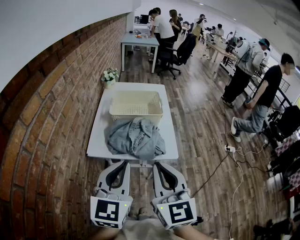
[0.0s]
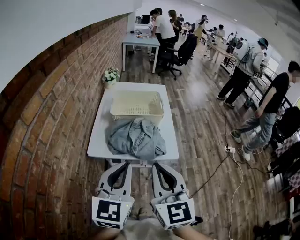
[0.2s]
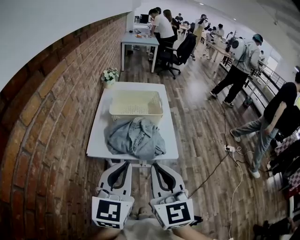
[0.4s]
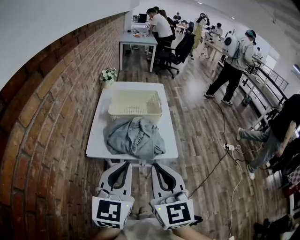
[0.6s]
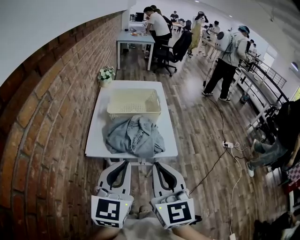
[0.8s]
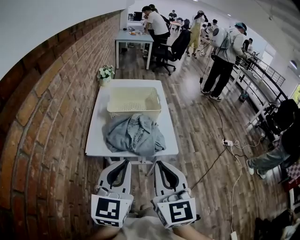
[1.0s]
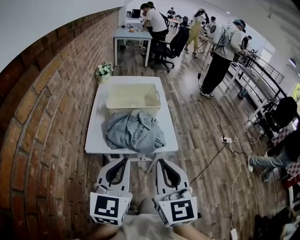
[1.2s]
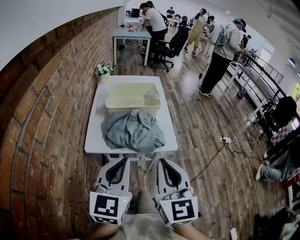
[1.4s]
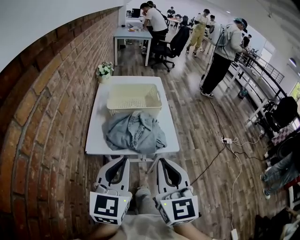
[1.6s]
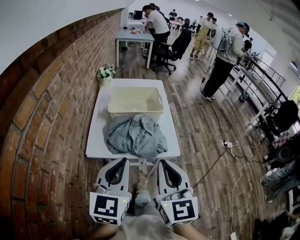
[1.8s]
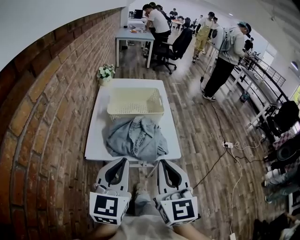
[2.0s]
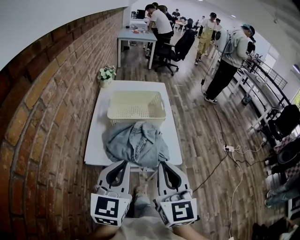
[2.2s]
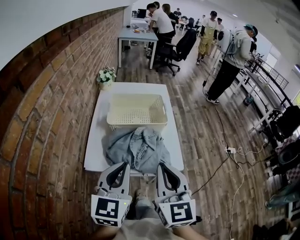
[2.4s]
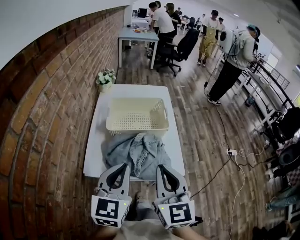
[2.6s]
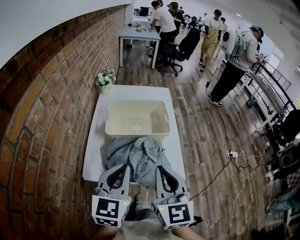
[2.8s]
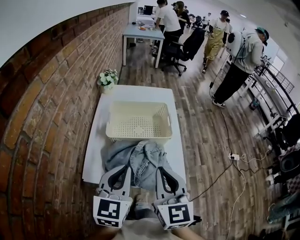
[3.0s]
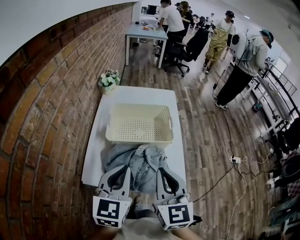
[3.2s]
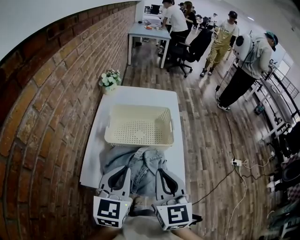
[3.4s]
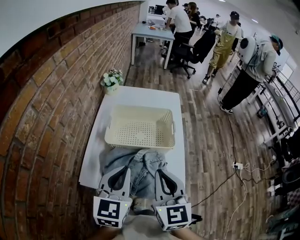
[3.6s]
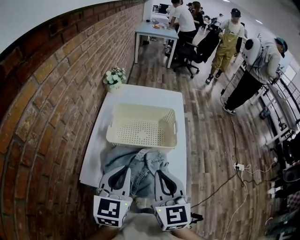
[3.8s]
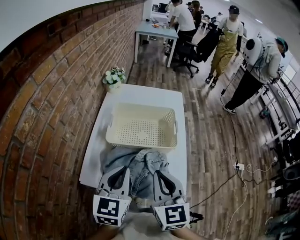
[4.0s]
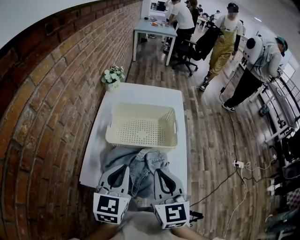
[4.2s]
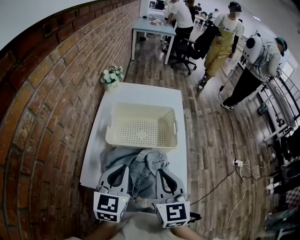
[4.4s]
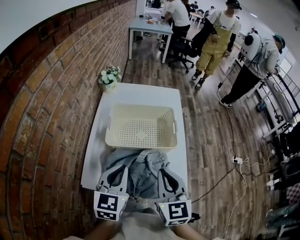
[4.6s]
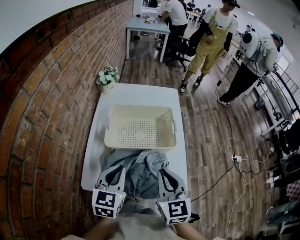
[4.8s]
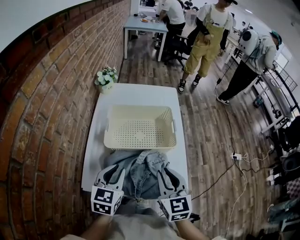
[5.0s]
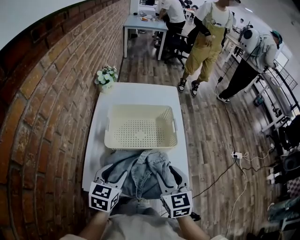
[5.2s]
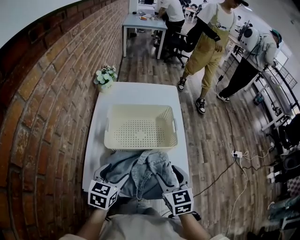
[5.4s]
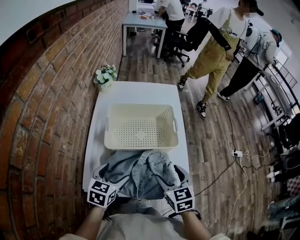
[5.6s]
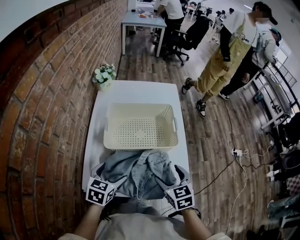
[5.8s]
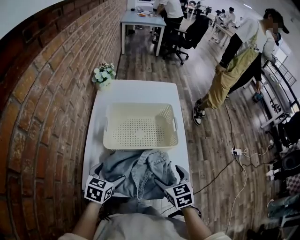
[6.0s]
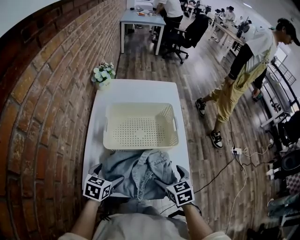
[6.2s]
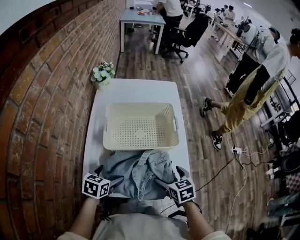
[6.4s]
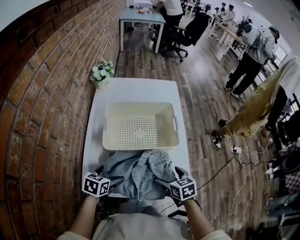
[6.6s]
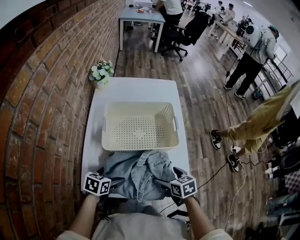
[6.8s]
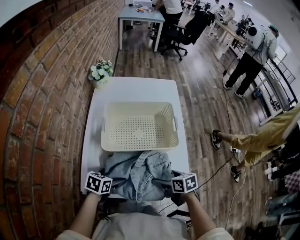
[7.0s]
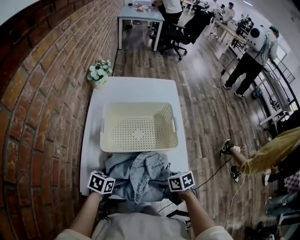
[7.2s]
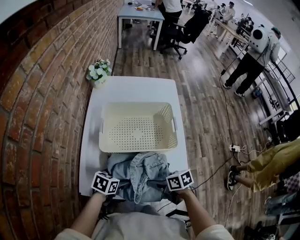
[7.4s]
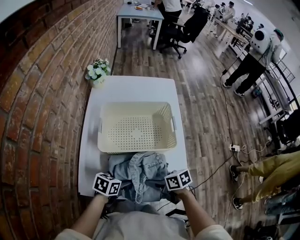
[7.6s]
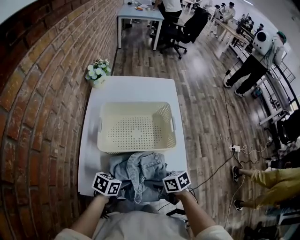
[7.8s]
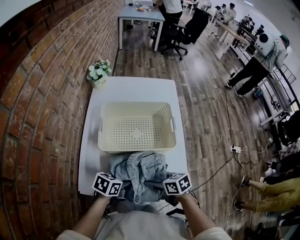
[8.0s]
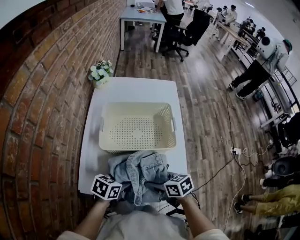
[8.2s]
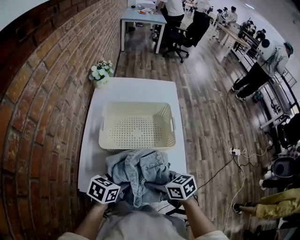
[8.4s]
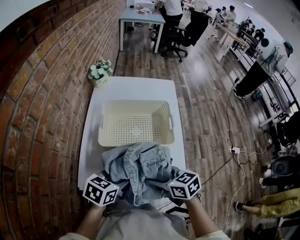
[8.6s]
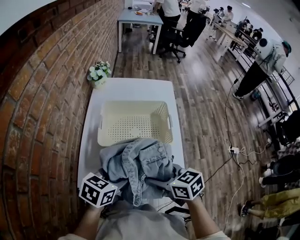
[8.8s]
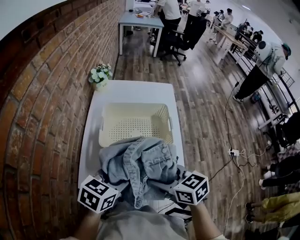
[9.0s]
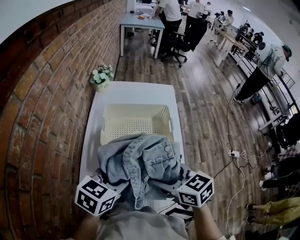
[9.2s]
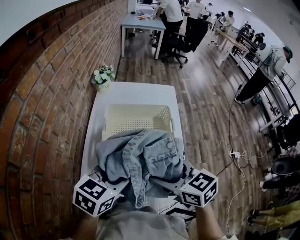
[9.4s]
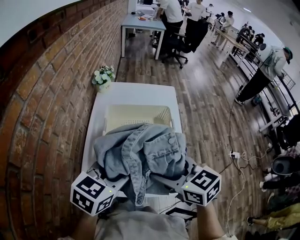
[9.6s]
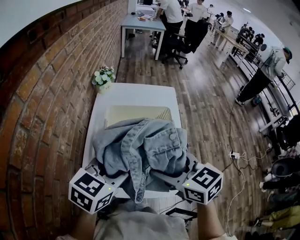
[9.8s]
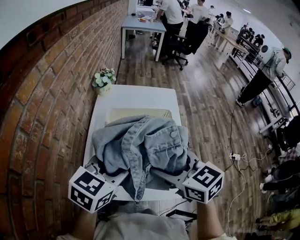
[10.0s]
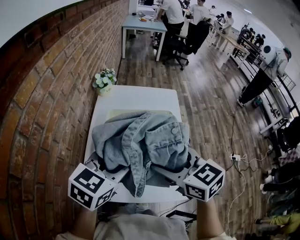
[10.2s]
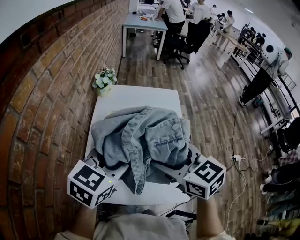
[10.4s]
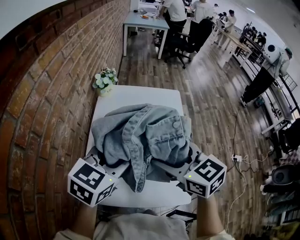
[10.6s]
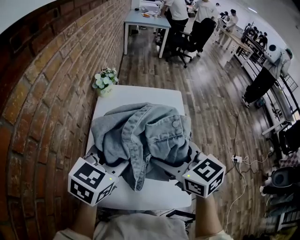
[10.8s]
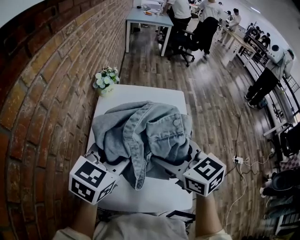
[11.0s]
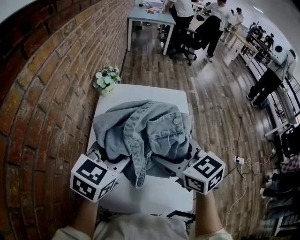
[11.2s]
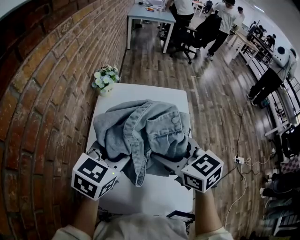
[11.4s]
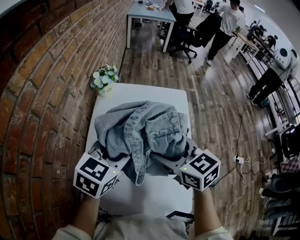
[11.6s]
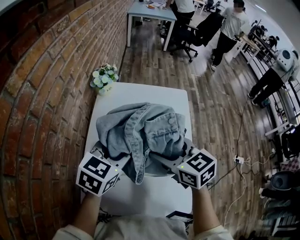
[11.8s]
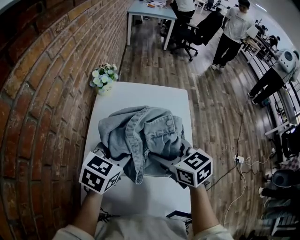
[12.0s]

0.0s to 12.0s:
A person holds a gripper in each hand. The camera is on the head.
0.0s to 1.6s: The grippers stay close to where they were, moving slightly.
1.6s to 3.0s: The grippers both shift forward by approximately 20 cm.
3.0s to 4.4s: The grippers both shift forward and downward by some 10 cm.
4.4s to 6.0s: The left gripper heads downward and to the left, covering approximately 15 cm, rotates roughly 30 degrees, and opens, while the right gripper shifts about 15 cm downward, turns by about 30 degrees, and opens its fingers.
6.0s to 7.6s: The grippers both shift downward by approximately 10 cm. The right gripper swivels some 40 degrees. The left gripper rotates some 30 degrees.
7.6s to 9.0s: Both grippers travel together upward, roughly 20 cm. The left gripper changes its angle by roughly 20 degrees, and closes up. The right gripper swivels roughly 30 degrees.
9.0s to 10.4s: The grippers both shift upward and forward by about 15 cm.
10.4s to 12.0s: Both grippers move forward and downward, about 15 cm.

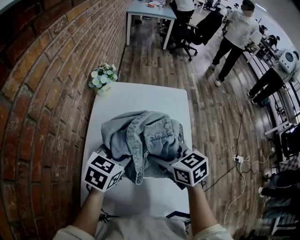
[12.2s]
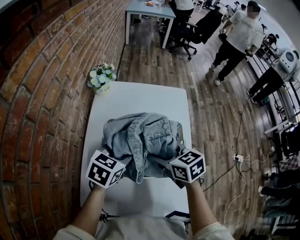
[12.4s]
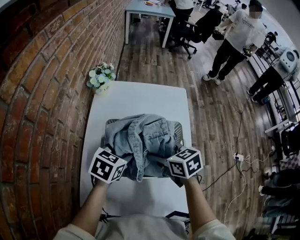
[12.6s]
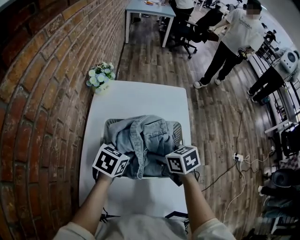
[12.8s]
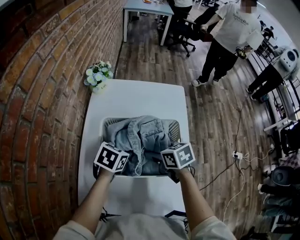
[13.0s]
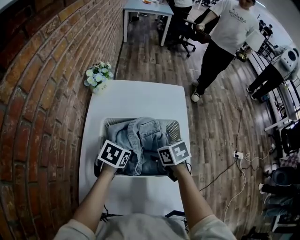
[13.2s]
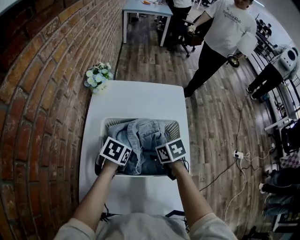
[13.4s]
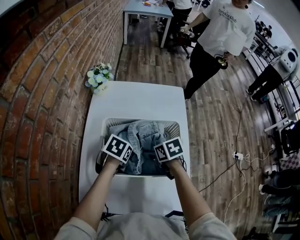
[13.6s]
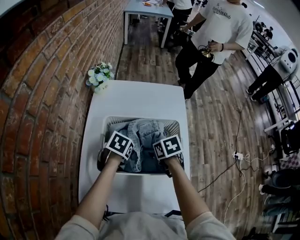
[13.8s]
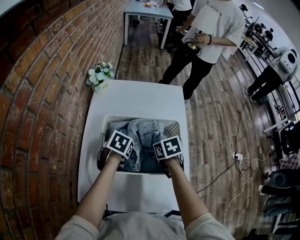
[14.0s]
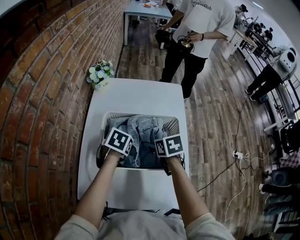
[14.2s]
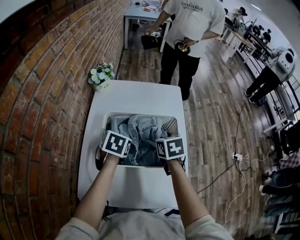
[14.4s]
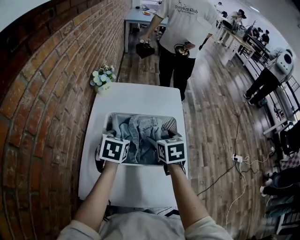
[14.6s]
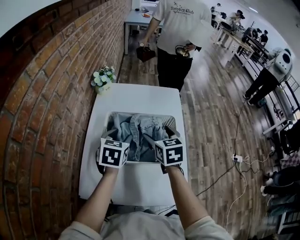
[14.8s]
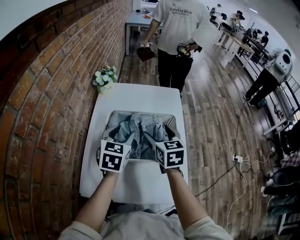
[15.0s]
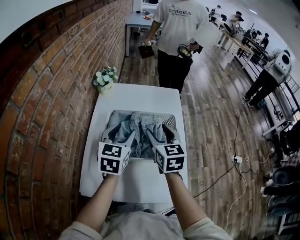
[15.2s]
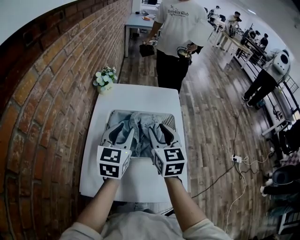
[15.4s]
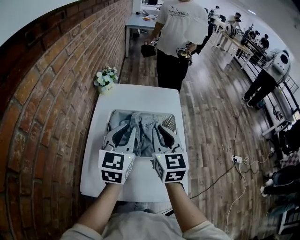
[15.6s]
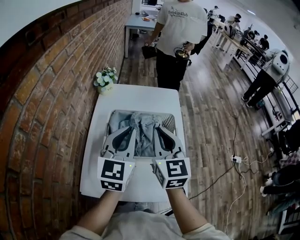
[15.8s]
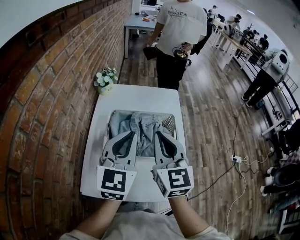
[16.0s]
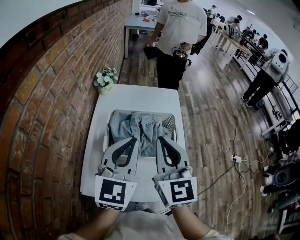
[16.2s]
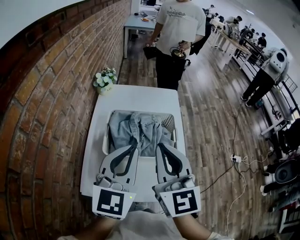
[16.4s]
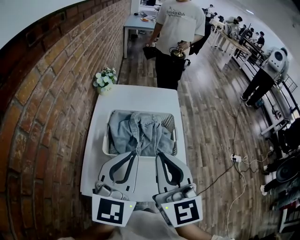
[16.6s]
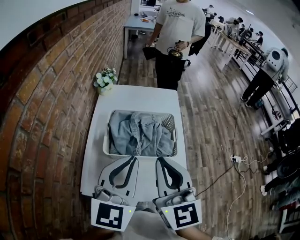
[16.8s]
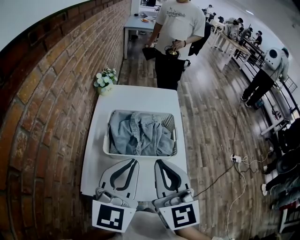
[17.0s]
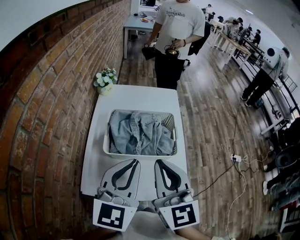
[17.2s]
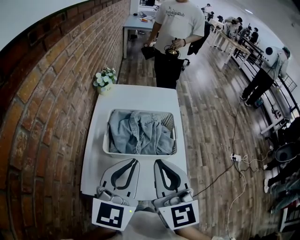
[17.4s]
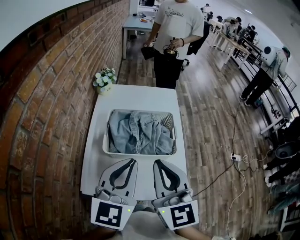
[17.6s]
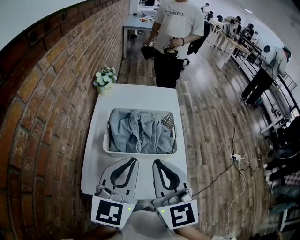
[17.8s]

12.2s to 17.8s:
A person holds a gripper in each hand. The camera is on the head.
12.2s to 13.6s: The two grippers go roughly 15 cm downward. The left gripper turns by approximately 30 degrees; the right gripper swivels roughly 30 degrees.
13.6s to 15.0s: Both grippers travel together upward, approximately 15 cm. The right gripper swivels about 40 degrees; the left gripper angles its fingers upward, by approximately 40 degrees.
15.0s to 16.4s: The grippers both shift upward and backward by about 20 cm. The right gripper changes its angle by about 30 degrees, and closes up; the left gripper swivels roughly 30 degrees, and closes up.
16.4s to 17.8s: The right gripper heads backward, covering some 5 cm.

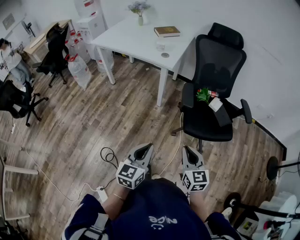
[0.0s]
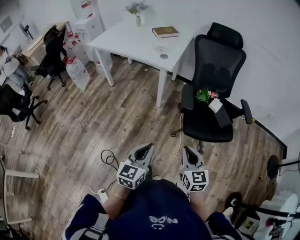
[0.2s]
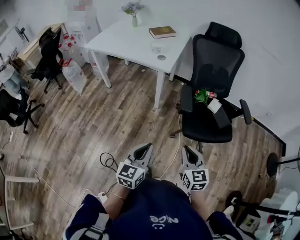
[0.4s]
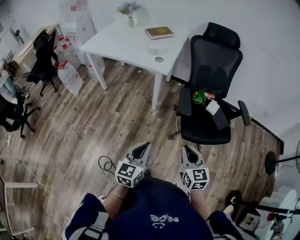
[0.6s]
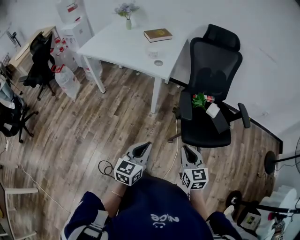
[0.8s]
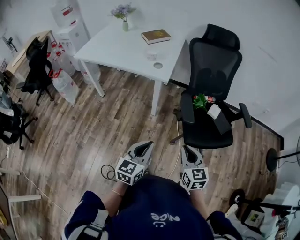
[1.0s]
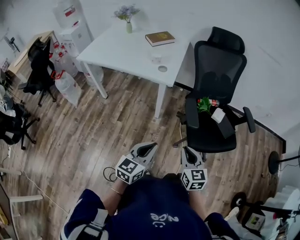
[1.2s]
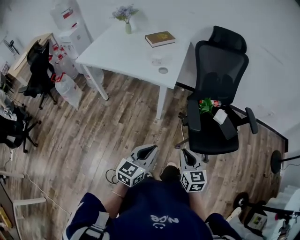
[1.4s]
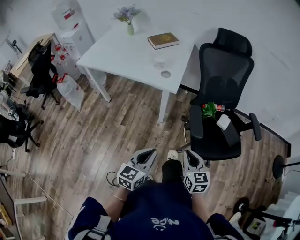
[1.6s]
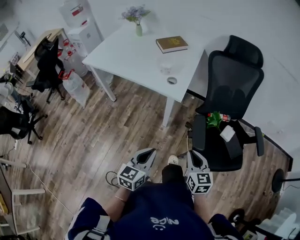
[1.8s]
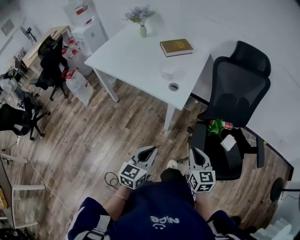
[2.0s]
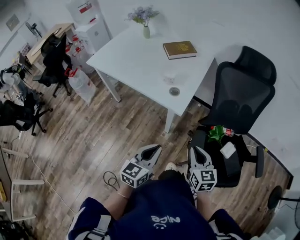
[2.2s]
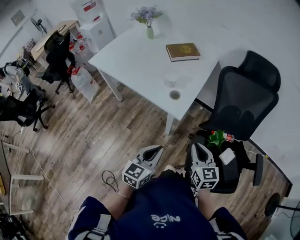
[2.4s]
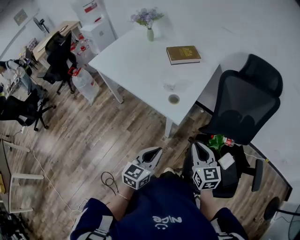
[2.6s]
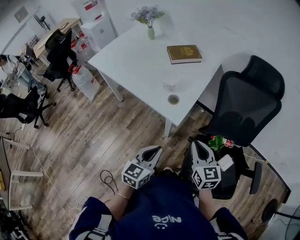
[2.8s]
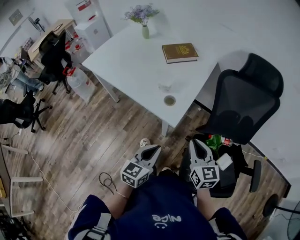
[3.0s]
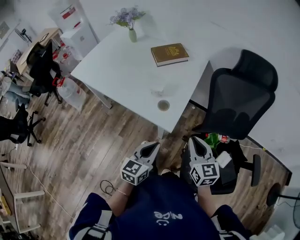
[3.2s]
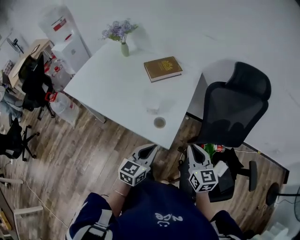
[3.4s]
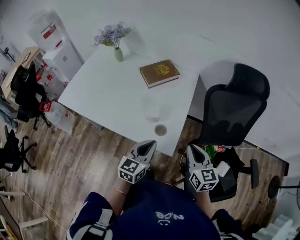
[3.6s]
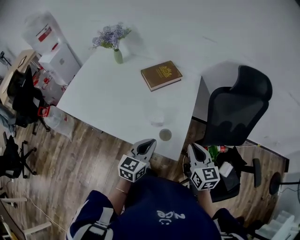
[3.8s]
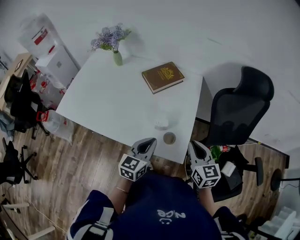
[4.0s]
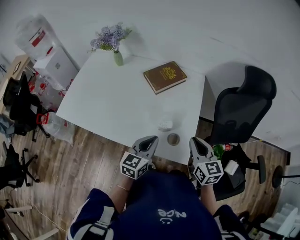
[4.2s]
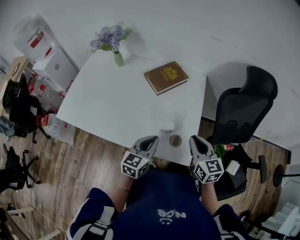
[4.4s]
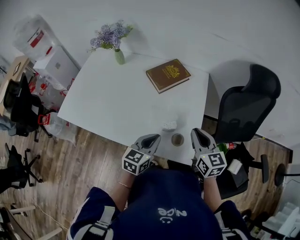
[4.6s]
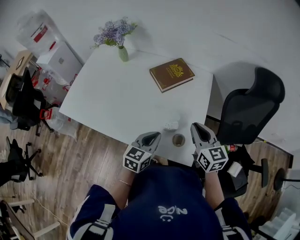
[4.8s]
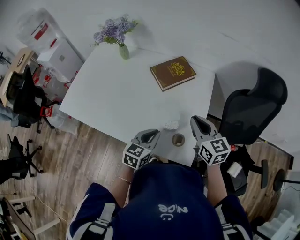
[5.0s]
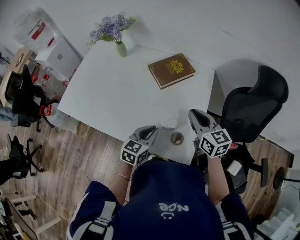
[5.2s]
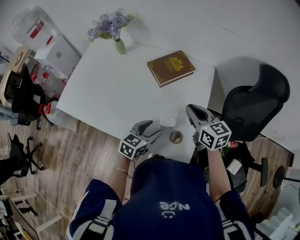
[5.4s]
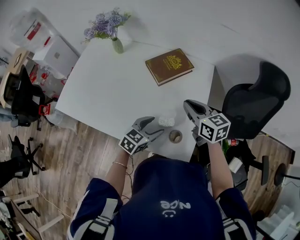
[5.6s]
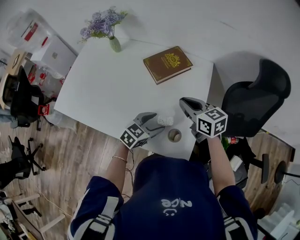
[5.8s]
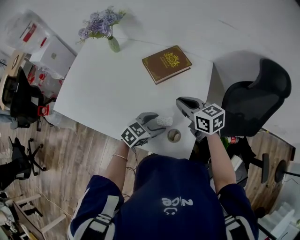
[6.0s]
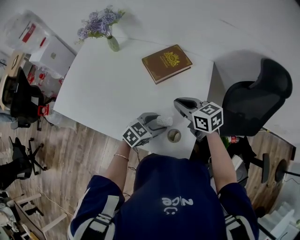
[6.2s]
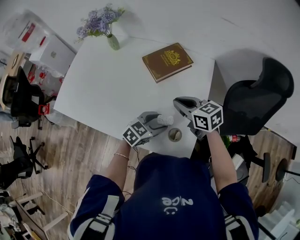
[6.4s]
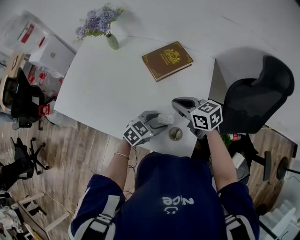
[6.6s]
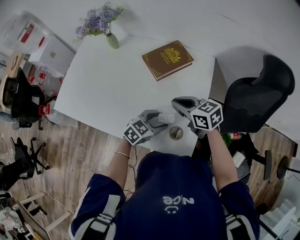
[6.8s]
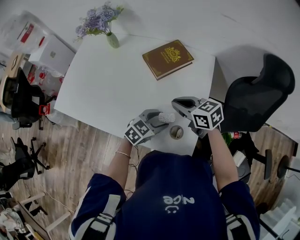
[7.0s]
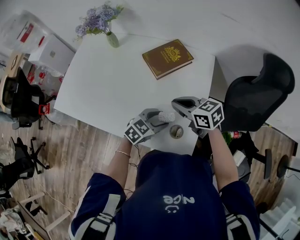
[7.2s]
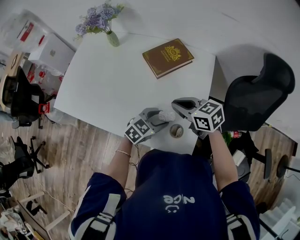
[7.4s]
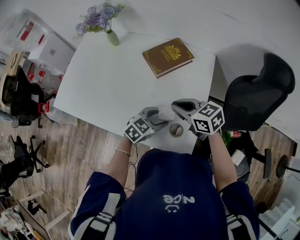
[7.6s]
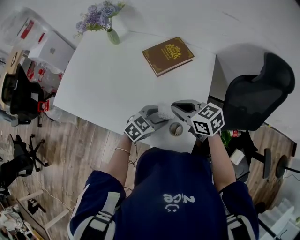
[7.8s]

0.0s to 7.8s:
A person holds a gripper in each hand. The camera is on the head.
0.0s to 1.6s: Both grippers travel together forward and to the left, some 25 cm.
1.6s to 3.2s: Both grippers travel together forward, some 35 cm.
3.2s to 4.6s: Both grippers travel together forward and to the left, about 25 cm.
4.6s to 6.2s: The left gripper shifts some 10 cm downward and forward, swivels about 30 degrees, and opens. Meanwhile the right gripper shifts approximately 15 cm forward and to the left, and swivels roughly 30 degrees.
6.2s to 7.8s: The right gripper shifts by about 5 cm.
